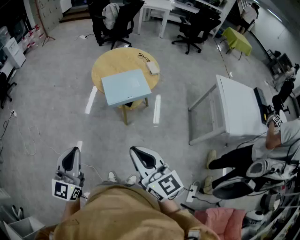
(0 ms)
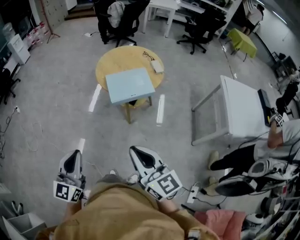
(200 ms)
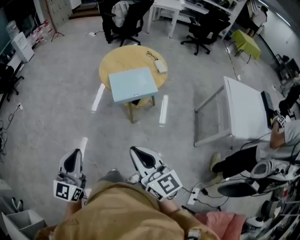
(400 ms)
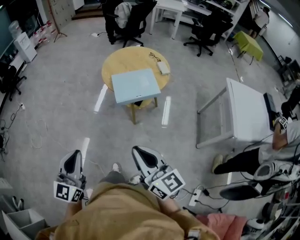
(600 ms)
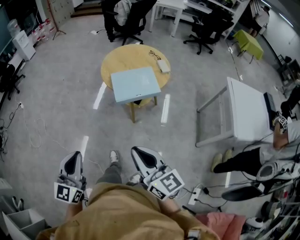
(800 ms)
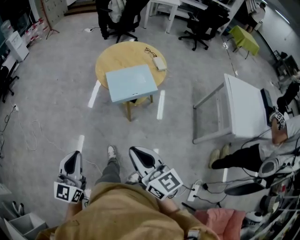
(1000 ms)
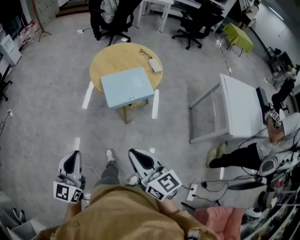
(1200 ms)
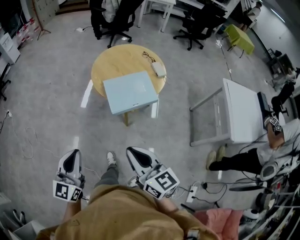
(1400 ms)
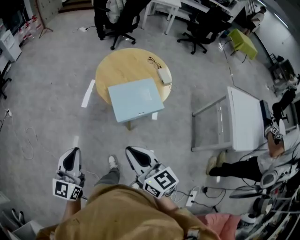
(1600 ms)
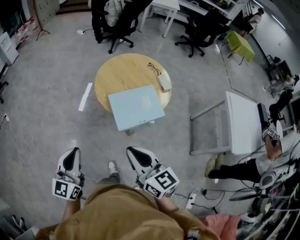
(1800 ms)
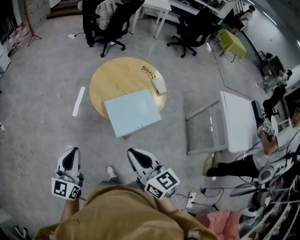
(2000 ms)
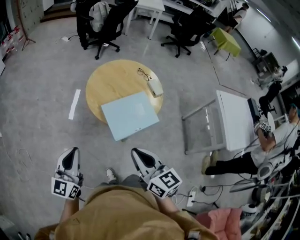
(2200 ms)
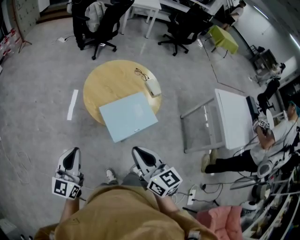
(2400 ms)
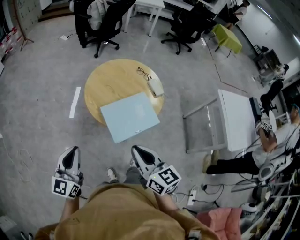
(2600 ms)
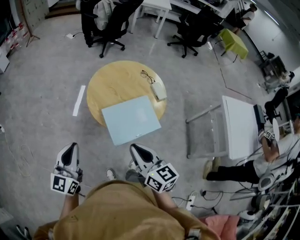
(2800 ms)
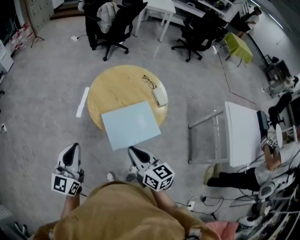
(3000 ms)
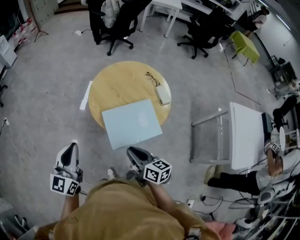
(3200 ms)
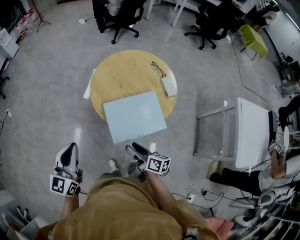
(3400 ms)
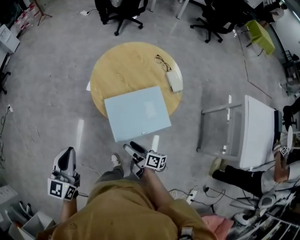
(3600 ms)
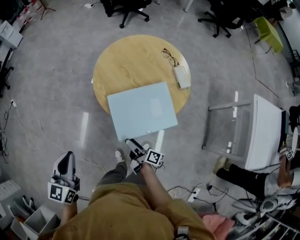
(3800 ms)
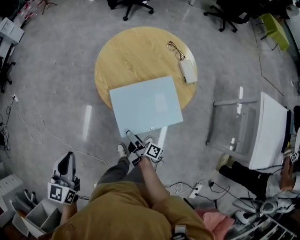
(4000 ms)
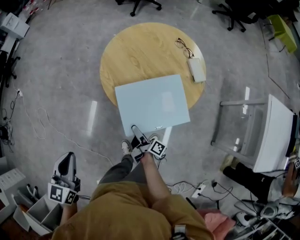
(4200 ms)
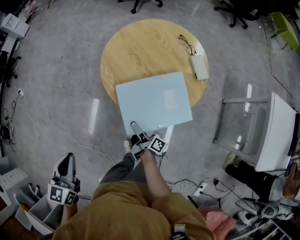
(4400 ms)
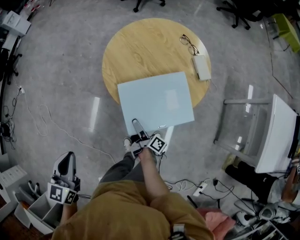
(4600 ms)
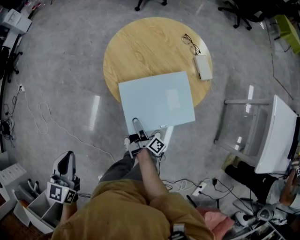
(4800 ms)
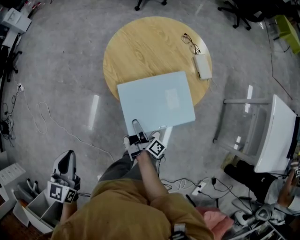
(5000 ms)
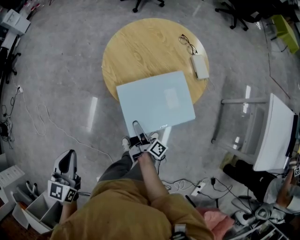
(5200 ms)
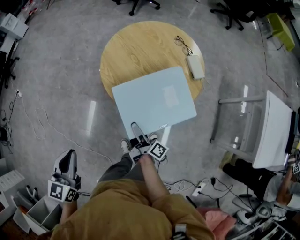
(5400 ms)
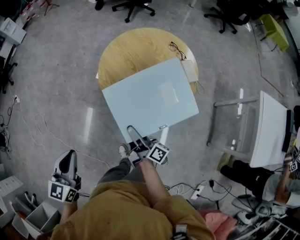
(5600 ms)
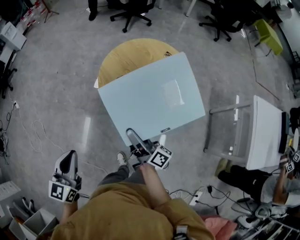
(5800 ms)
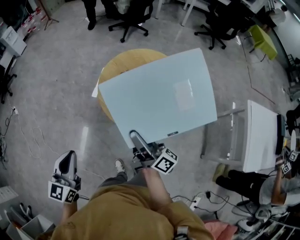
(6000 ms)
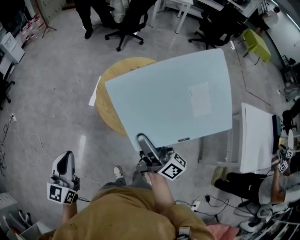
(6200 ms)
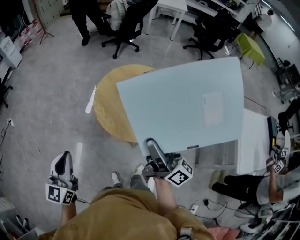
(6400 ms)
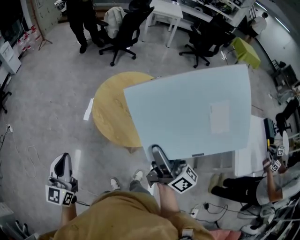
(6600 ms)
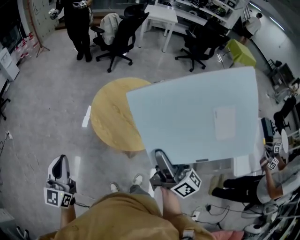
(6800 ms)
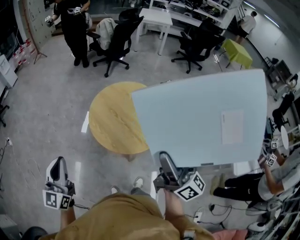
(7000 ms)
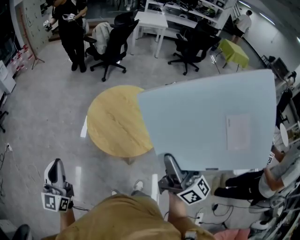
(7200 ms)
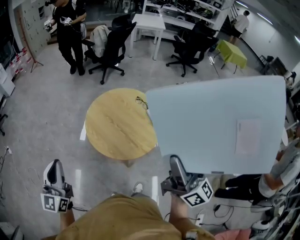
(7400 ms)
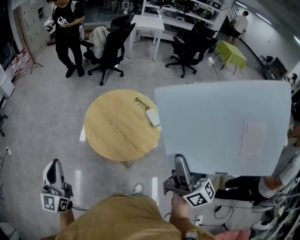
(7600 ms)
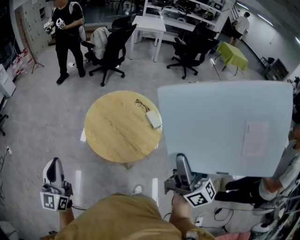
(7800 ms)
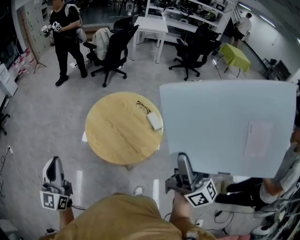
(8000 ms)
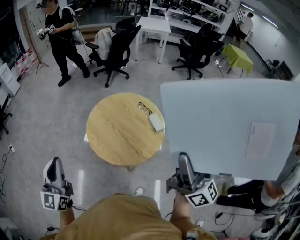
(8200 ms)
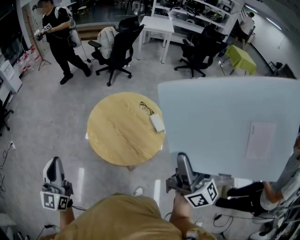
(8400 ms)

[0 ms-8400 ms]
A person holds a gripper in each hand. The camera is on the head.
0 ms to 1400 ms: The grippers both shift forward and downward by some 15 cm.
1400 ms to 2800 ms: The grippers both shift forward by about 25 cm.
2800 ms to 4200 ms: The right gripper is displaced downward by about 35 cm, twists approximately 70 degrees clockwise, seen from behind, and opens its fingers. Meanwhile the left gripper shifts roughly 10 cm downward, and changes its angle by some 30 degrees.
4200 ms to 5600 ms: The right gripper heads upward, covering some 15 cm.
5600 ms to 7000 ms: The right gripper goes some 40 cm upward and to the right, and rotates around the line of its fingers by some 40 degrees, counterclockwise from behind, while the left gripper travels upward by about 15 cm, and swivels some 30 degrees.
7000 ms to 8400 ms: The right gripper is displaced to the right and upward by approximately 15 cm. The left gripper goes roughly 5 cm to the right.

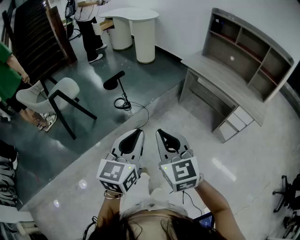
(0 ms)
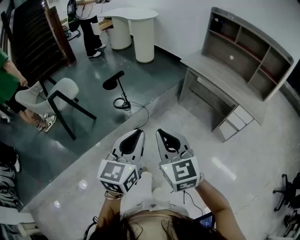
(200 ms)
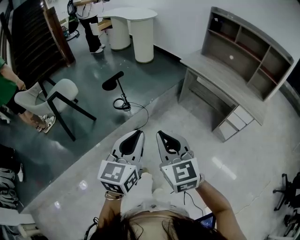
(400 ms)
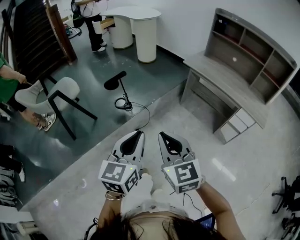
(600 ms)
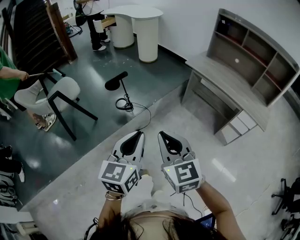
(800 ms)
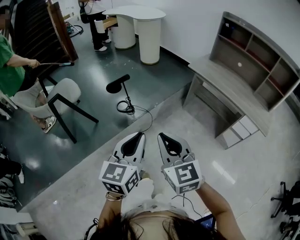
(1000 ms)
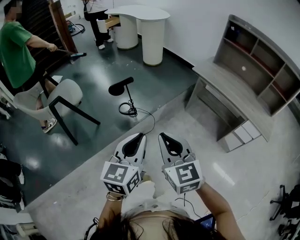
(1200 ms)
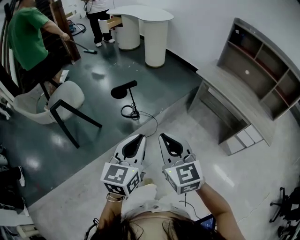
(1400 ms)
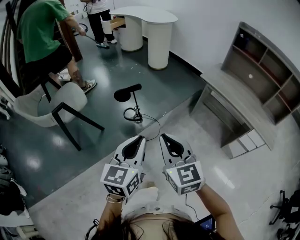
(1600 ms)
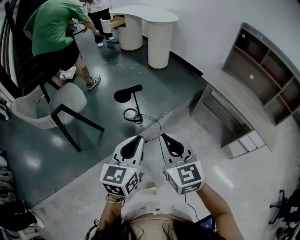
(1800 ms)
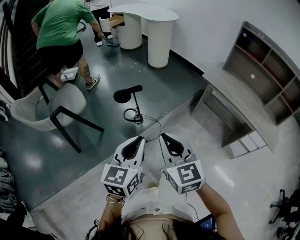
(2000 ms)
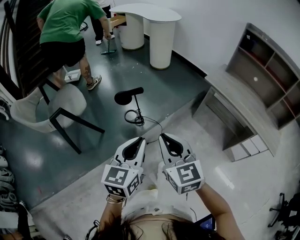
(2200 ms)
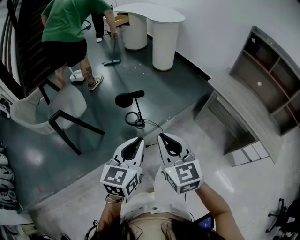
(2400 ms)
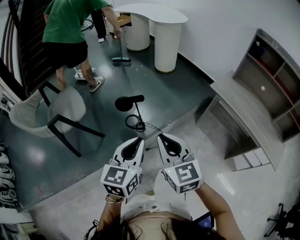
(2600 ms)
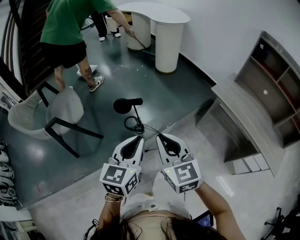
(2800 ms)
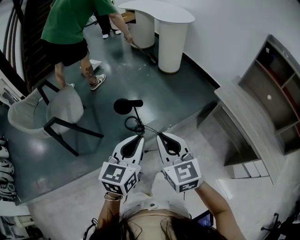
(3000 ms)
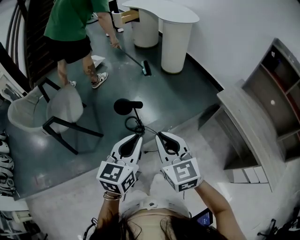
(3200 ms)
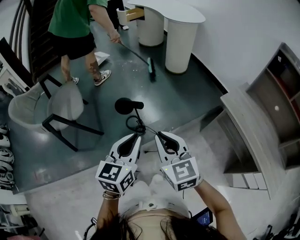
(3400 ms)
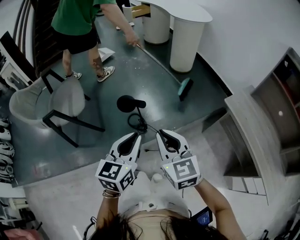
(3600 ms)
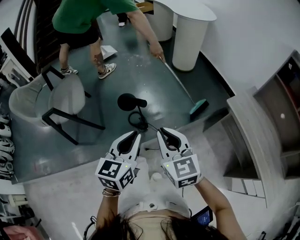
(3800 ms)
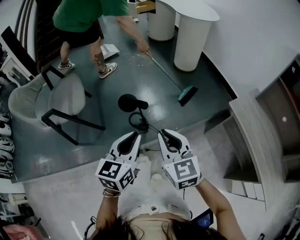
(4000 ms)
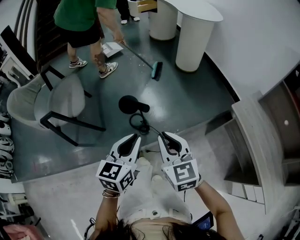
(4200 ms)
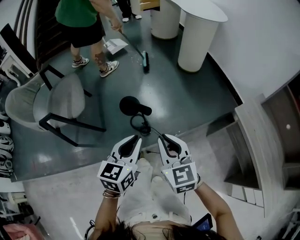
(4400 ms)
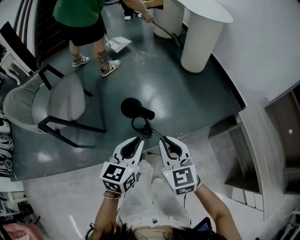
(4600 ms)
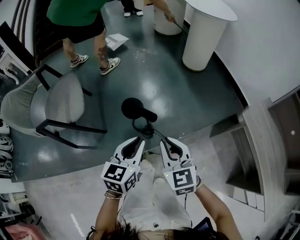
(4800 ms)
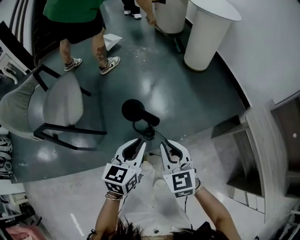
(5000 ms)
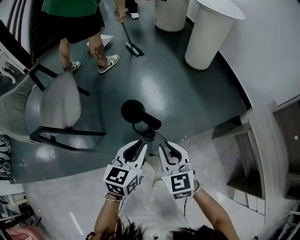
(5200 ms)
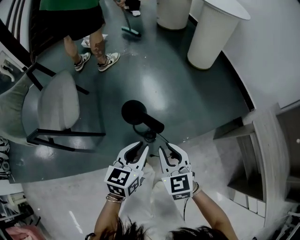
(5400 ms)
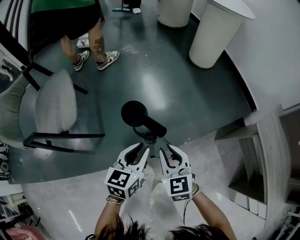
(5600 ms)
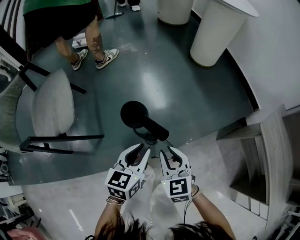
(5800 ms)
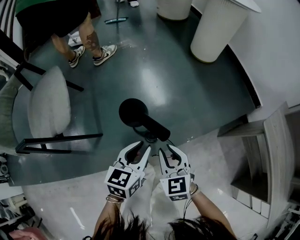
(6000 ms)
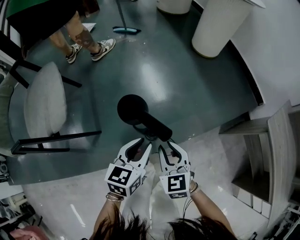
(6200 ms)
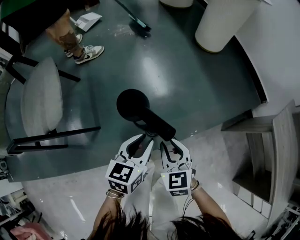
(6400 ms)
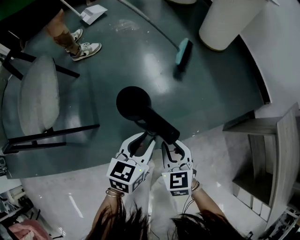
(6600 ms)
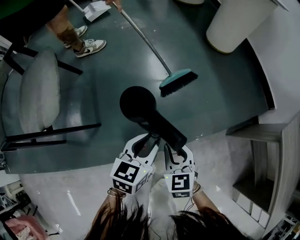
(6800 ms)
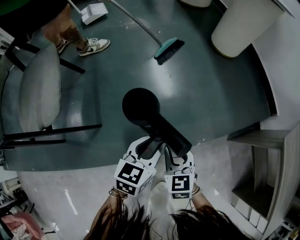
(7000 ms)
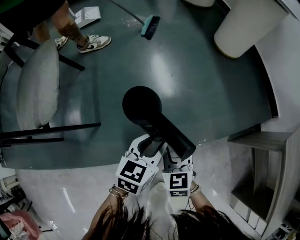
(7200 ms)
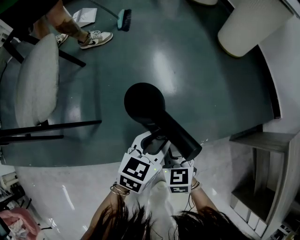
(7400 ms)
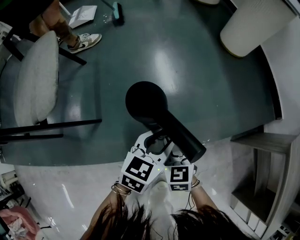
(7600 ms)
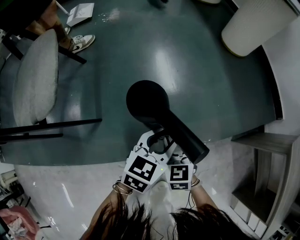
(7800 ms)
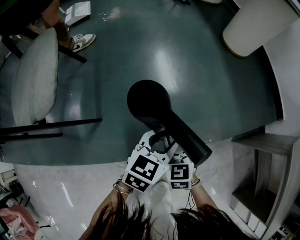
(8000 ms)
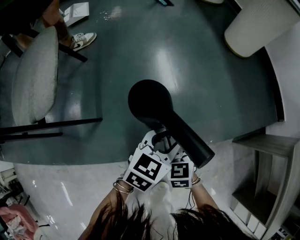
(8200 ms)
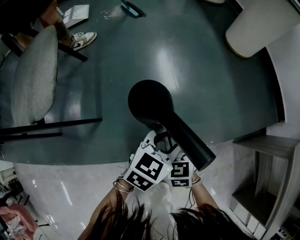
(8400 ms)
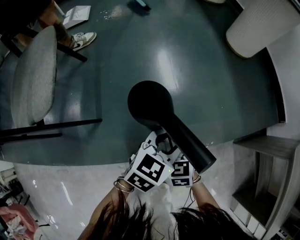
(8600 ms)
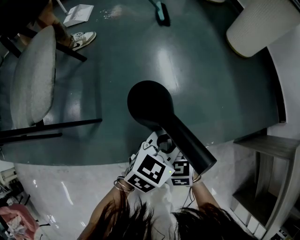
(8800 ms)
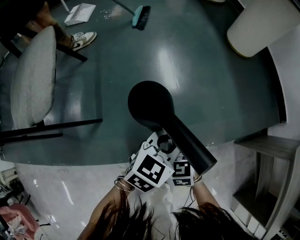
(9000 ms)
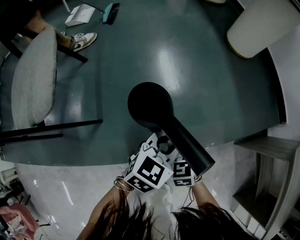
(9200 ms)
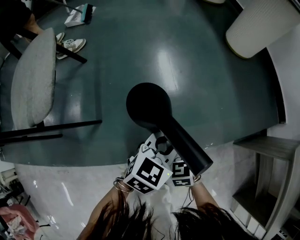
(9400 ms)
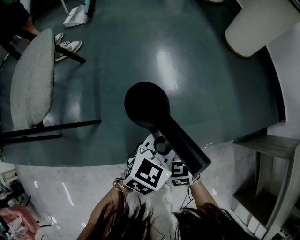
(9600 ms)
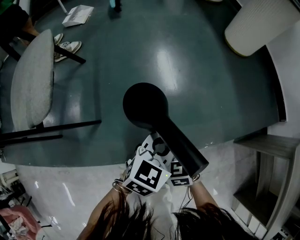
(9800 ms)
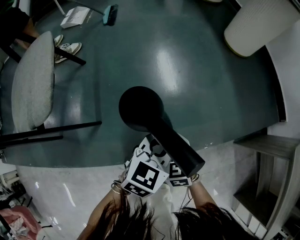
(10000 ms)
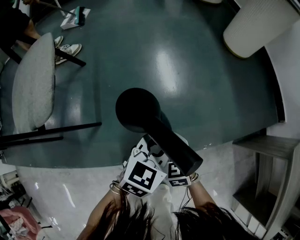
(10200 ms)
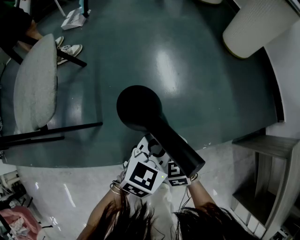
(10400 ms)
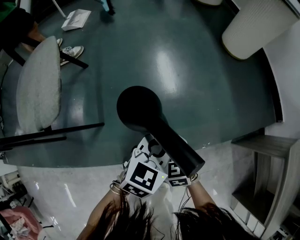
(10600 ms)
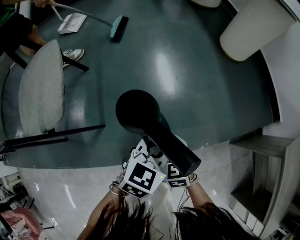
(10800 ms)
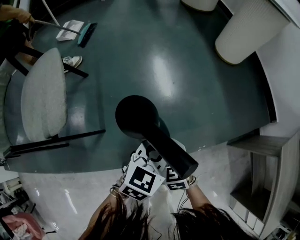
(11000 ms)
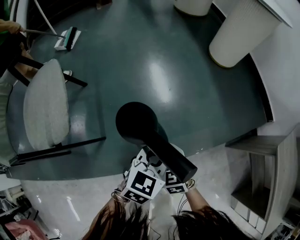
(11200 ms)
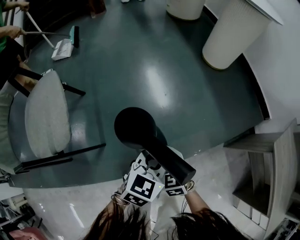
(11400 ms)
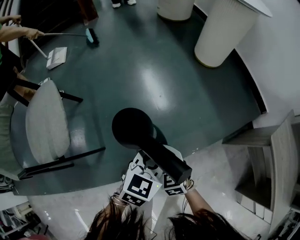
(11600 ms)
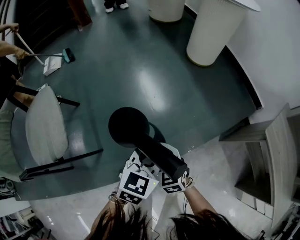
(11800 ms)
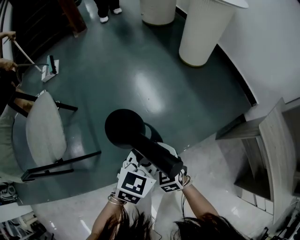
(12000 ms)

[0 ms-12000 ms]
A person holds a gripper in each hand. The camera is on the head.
0 ms to 1600 ms: The grippers both shift forward and to the left by about 20 cm.
1600 ms to 3000 ms: Both grippers travel together forward, roughly 20 cm.
3000 ms to 4400 ms: The two grippers go about 15 cm forward and downward.
4400 ms to 6000 ms: Both grippers travel together downward and forward, approximately 25 cm.
6000 ms to 7600 ms: The left gripper moves downward and forward, about 15 cm. Meanwhile the right gripper heads downward, covering some 15 cm.
7600 ms to 10400 ms: The grippers move only a little.
10400 ms to 12000 ms: The grippers both shift upward by about 15 cm.

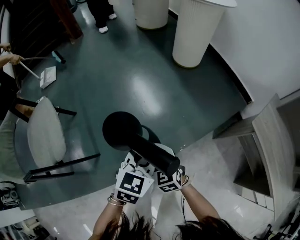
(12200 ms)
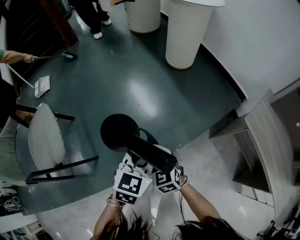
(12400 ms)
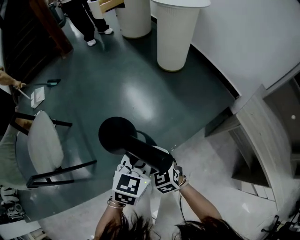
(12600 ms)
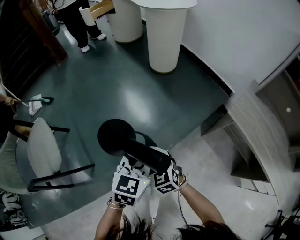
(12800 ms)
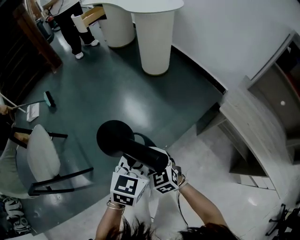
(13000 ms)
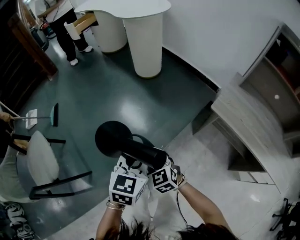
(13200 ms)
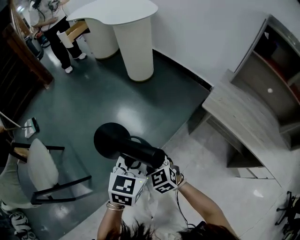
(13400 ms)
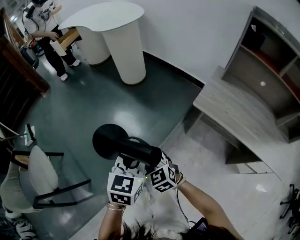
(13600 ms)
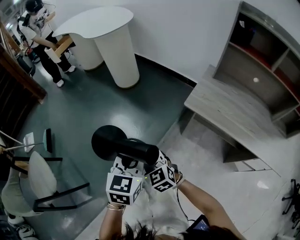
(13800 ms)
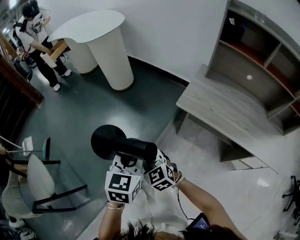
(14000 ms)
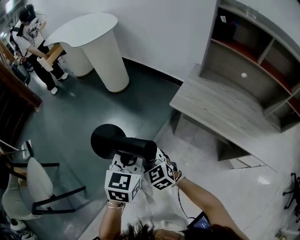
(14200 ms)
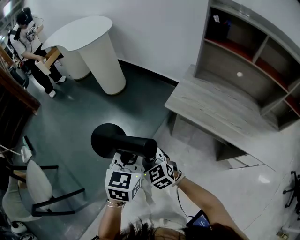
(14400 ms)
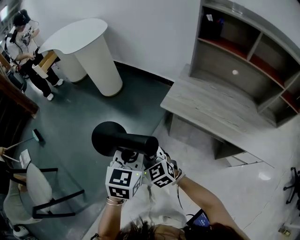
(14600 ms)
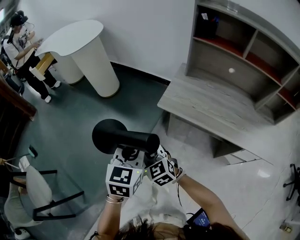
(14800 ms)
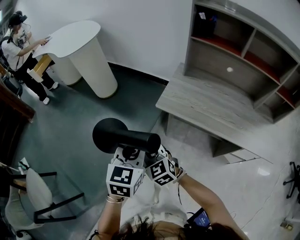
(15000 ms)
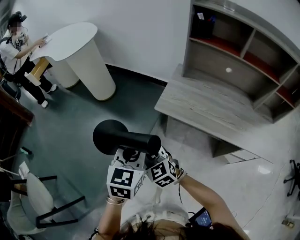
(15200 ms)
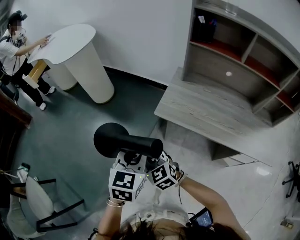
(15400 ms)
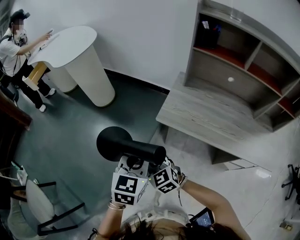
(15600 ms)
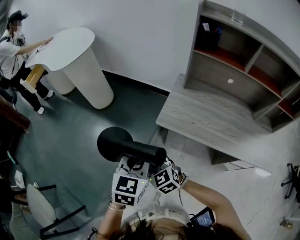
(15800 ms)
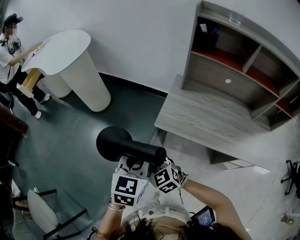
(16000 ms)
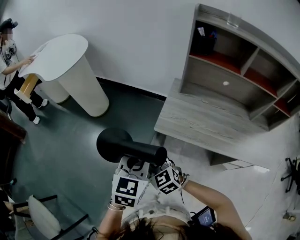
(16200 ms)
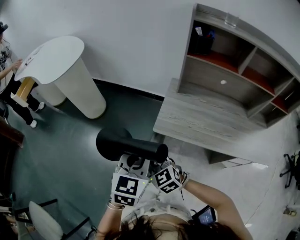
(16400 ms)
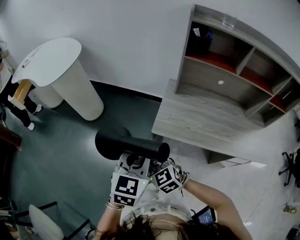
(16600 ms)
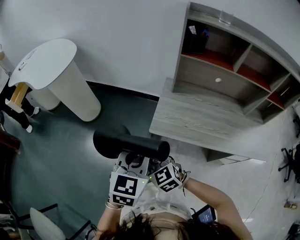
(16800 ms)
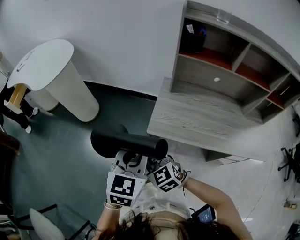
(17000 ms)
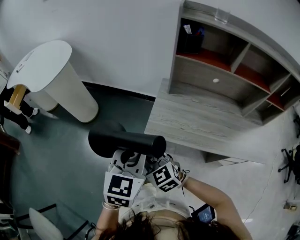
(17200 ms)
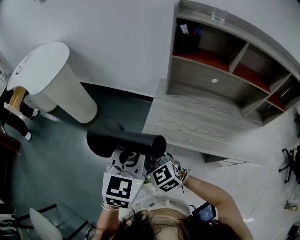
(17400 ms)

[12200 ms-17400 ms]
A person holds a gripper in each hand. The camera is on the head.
12200 ms to 14000 ms: Both grippers move to the right and upward, roughly 30 cm.
14000 ms to 15600 ms: The two grippers go about 15 cm to the right and forward.
15600 ms to 17400 ms: The grippers both shift forward and upward by about 10 cm.
